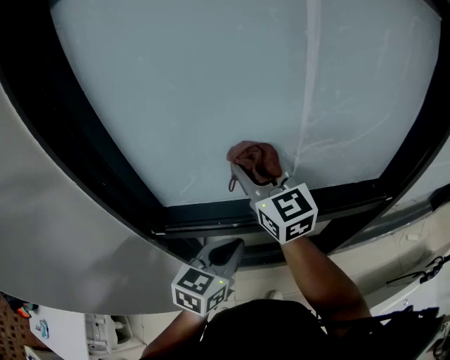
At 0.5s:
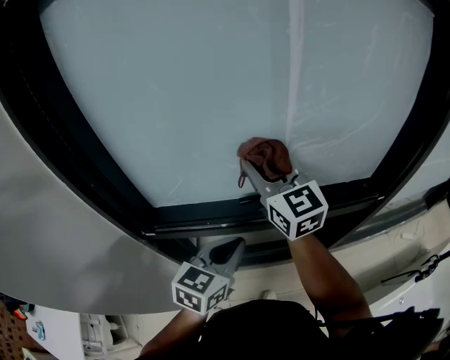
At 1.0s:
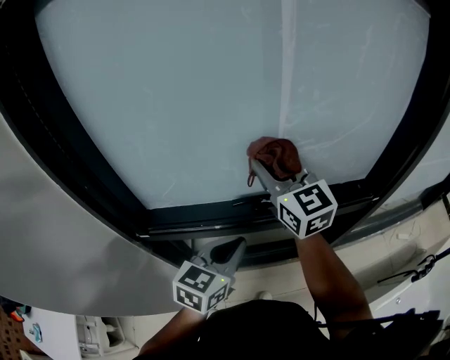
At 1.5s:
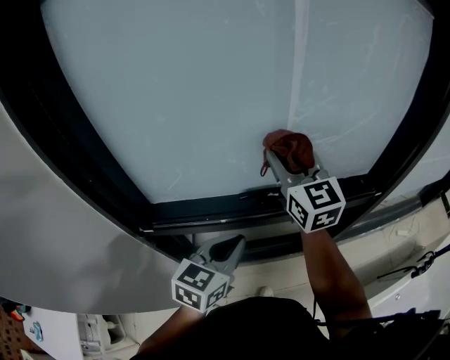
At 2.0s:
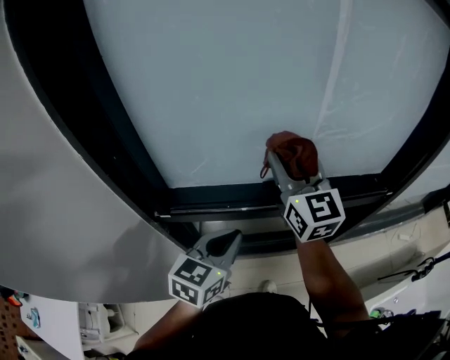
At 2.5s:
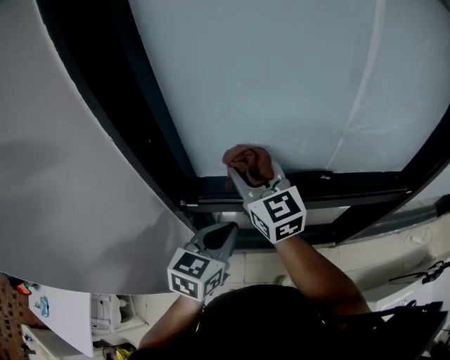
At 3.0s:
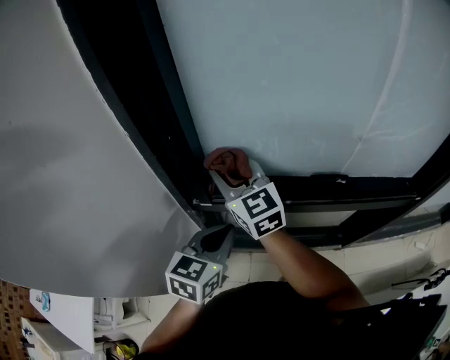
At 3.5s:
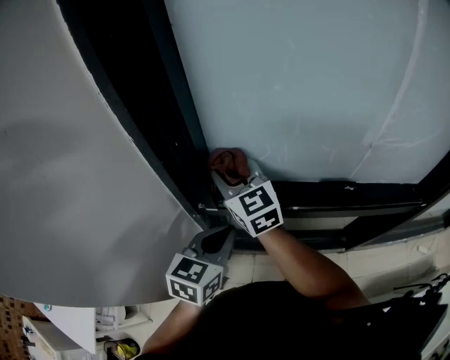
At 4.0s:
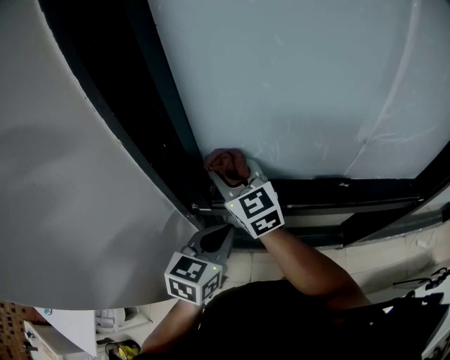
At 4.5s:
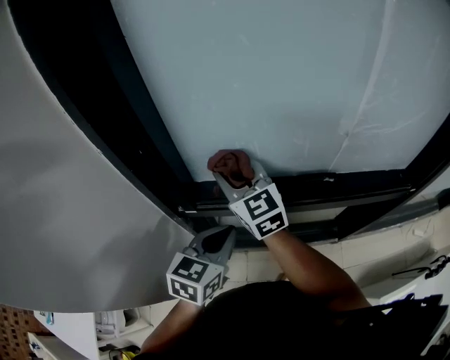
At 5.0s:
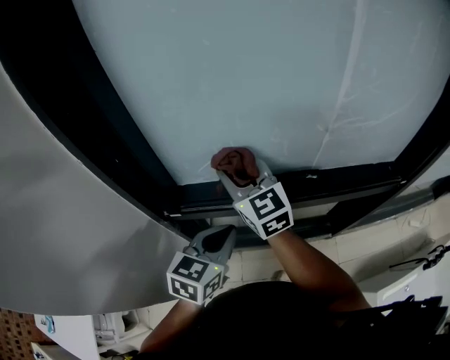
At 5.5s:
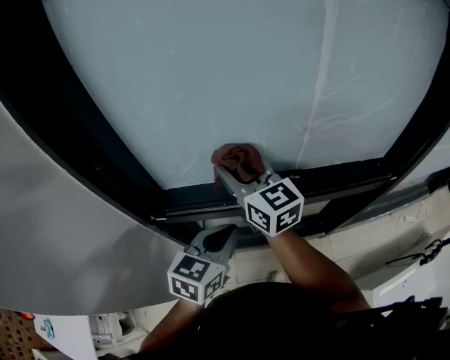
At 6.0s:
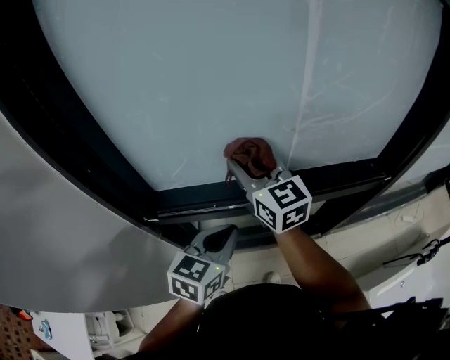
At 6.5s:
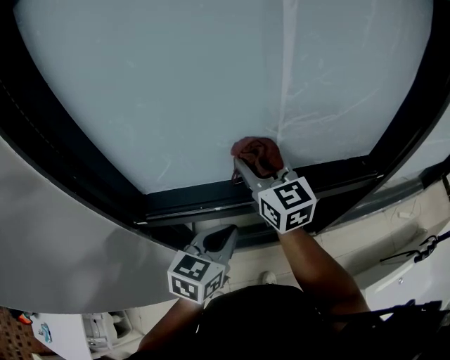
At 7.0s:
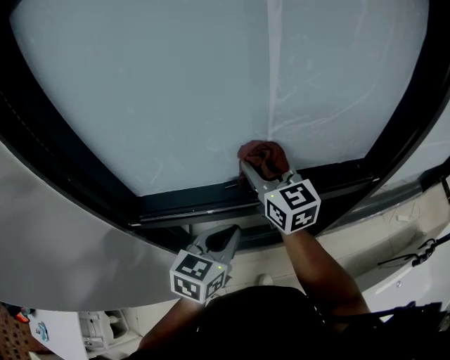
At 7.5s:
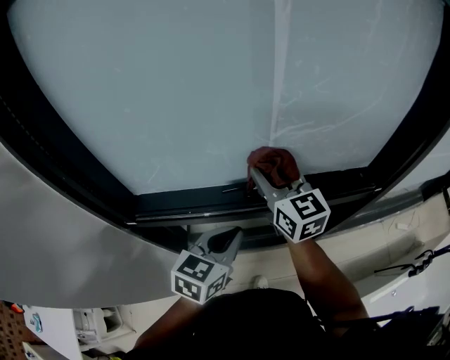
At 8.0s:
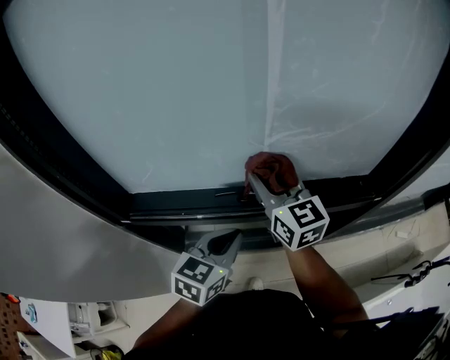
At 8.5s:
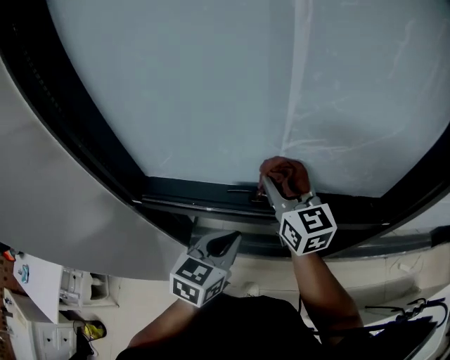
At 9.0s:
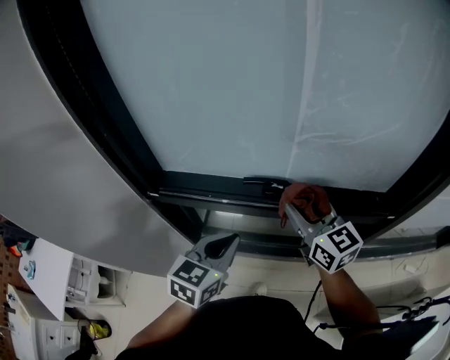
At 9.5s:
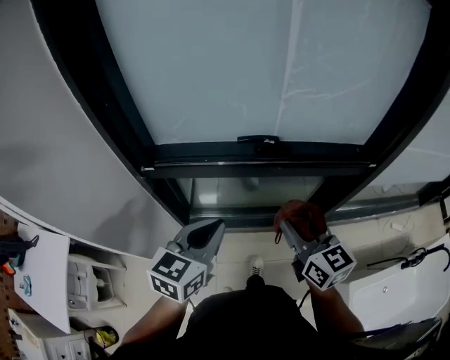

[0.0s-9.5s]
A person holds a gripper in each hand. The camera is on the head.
2.0s to 4.0s: The right gripper is displaced to the left by roughly 25 cm, and changes its angle by some 30 degrees; the left gripper goes roughly 15 cm to the left.
4.0s to 5.5s: Both grippers travel together to the right, about 15 cm.
5.5s to 7.5s: The right gripper moves to the right, some 15 cm. Meanwhile the left gripper travels to the right by approximately 10 cm.
7.5s to 9.5s: The right gripper travels backward by roughly 25 cm, while the left gripper heads backward and to the left, covering approximately 15 cm.

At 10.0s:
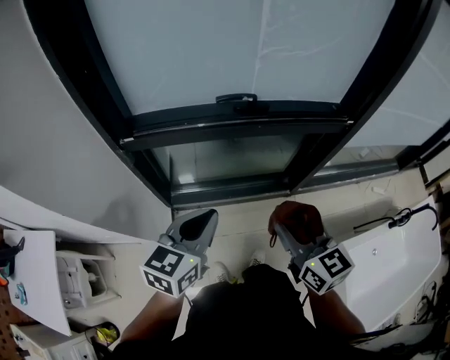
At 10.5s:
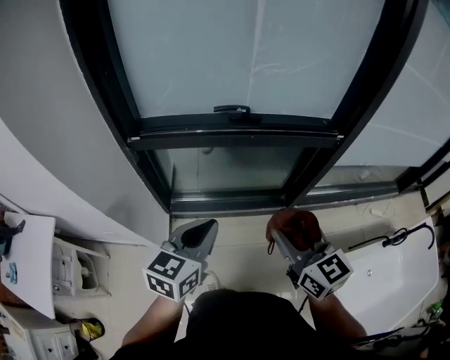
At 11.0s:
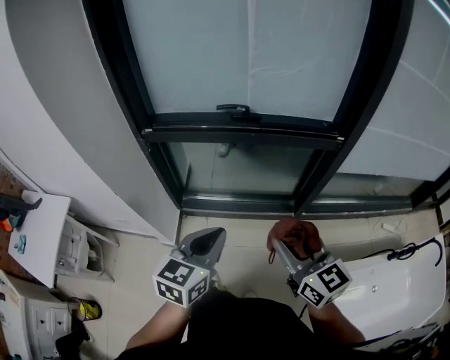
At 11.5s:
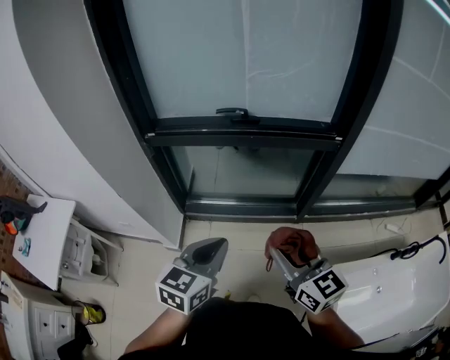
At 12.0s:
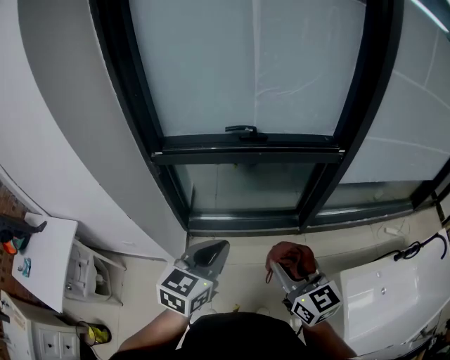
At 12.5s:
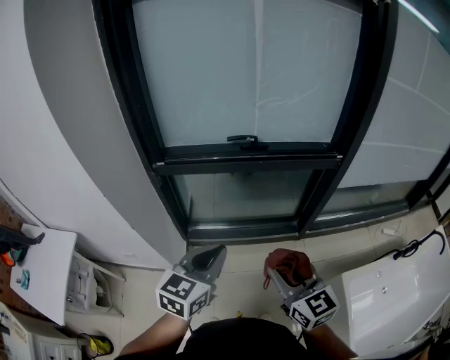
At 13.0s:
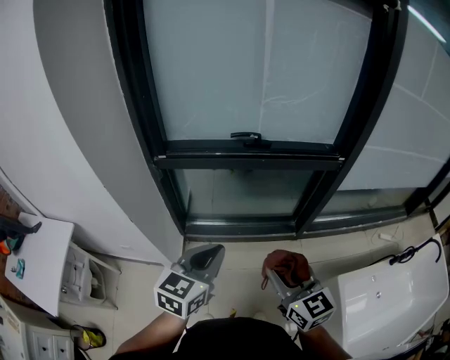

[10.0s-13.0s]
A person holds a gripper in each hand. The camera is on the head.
10.0s to 11.5s: Both grippers travel together backward and to the right, some 20 cm.
11.5s to 13.0s: The grippers both shift to the left by roughly 10 cm.

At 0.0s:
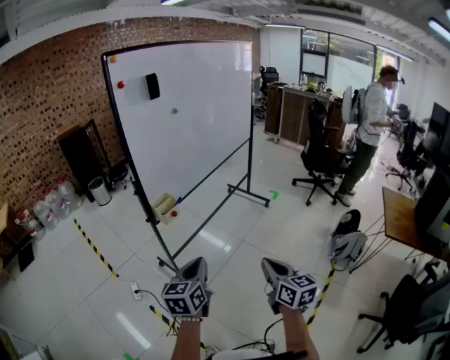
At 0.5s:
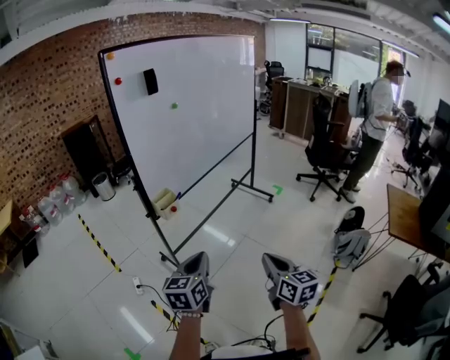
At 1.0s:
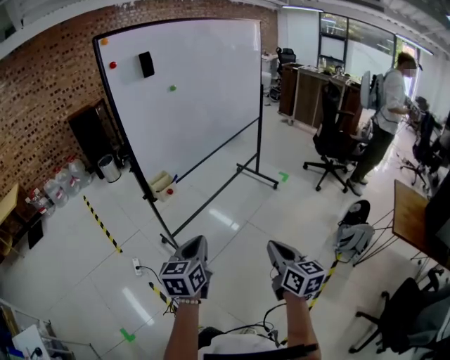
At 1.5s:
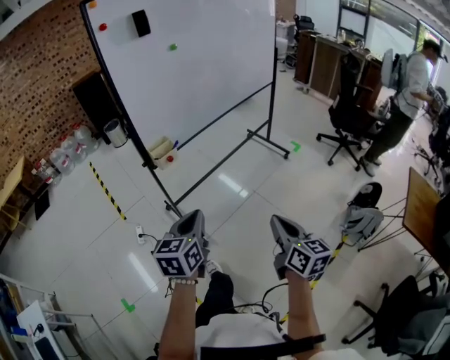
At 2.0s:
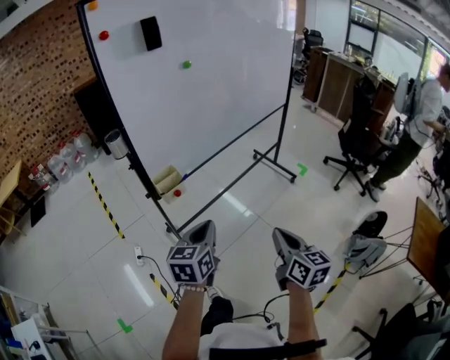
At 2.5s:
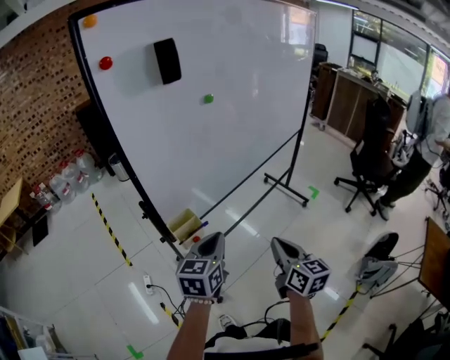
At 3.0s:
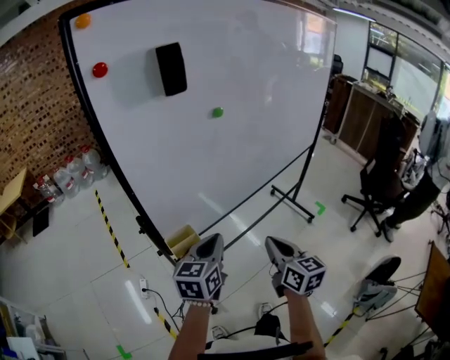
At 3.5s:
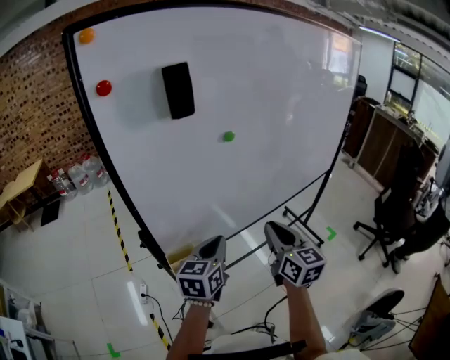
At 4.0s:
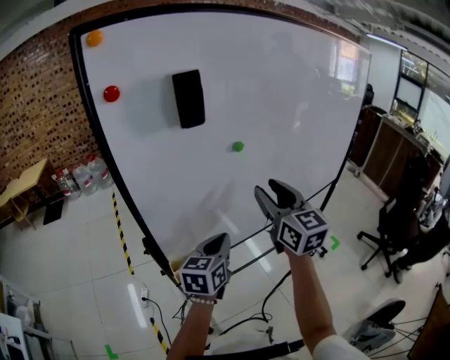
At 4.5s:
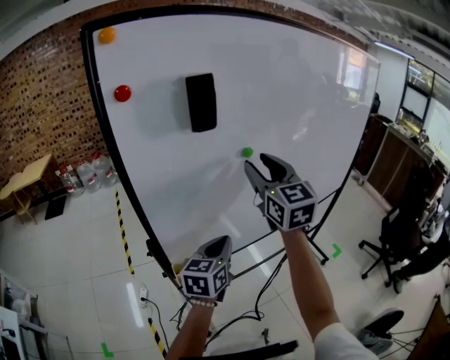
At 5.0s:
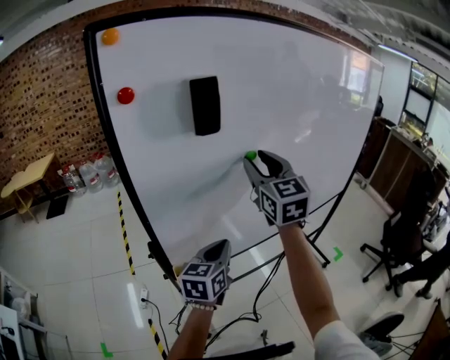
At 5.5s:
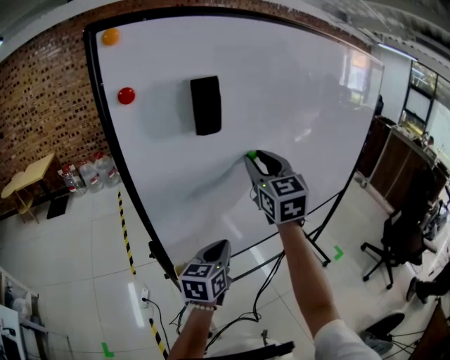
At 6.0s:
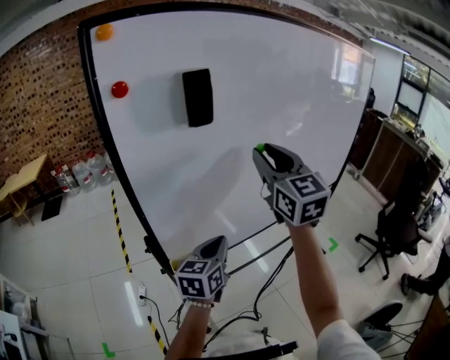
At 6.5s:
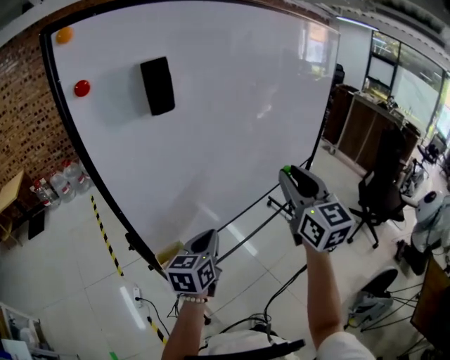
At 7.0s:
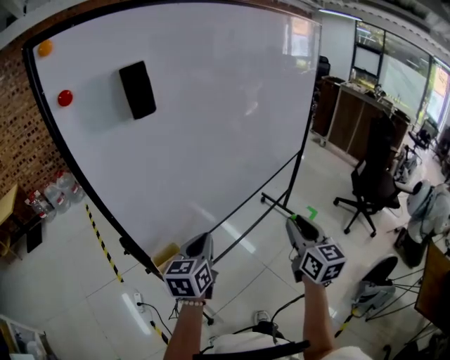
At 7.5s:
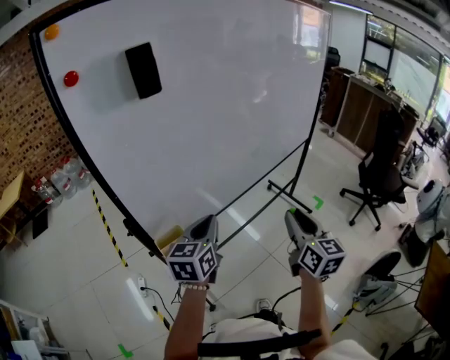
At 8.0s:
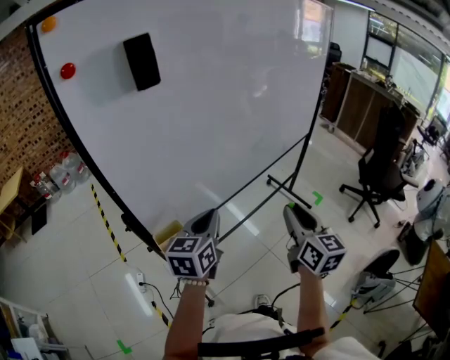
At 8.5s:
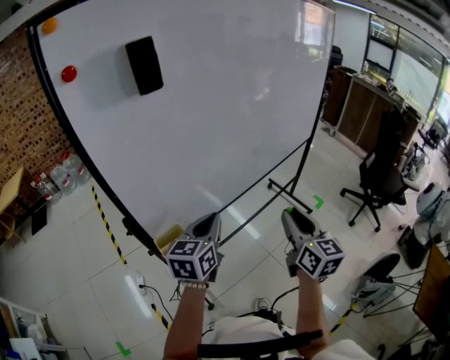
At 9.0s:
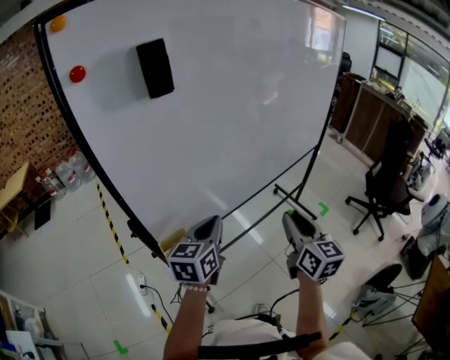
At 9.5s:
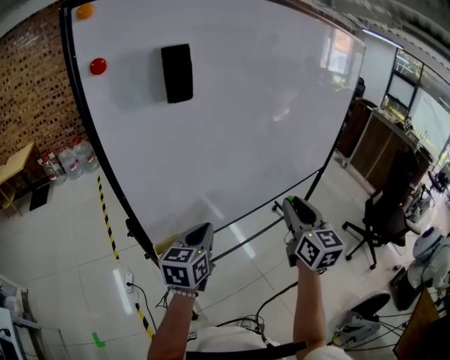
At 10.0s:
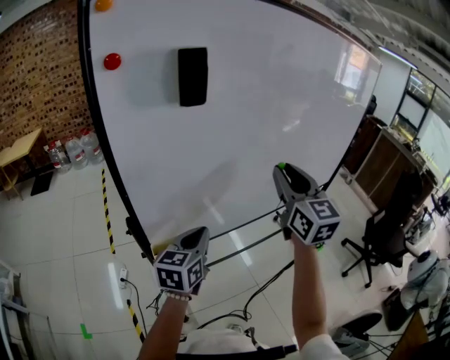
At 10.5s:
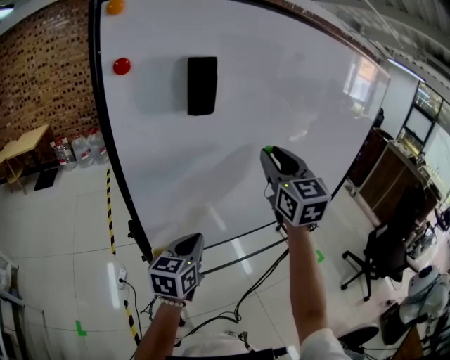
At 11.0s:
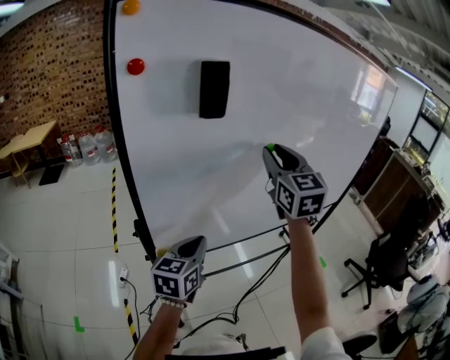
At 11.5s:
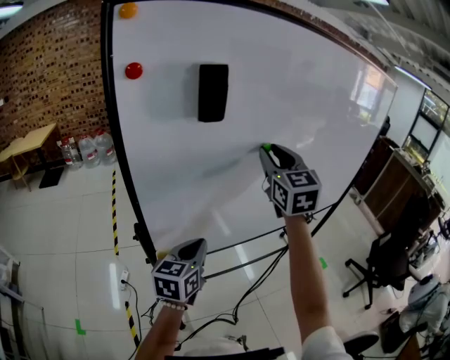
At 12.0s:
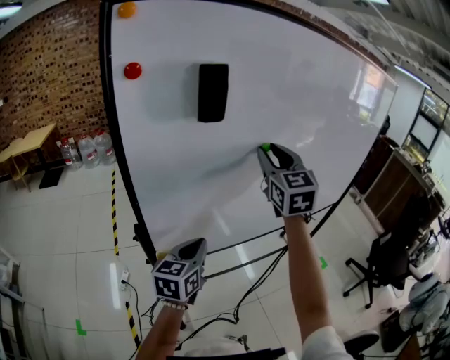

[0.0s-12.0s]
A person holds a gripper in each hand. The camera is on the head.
0.0s to 2.0s: Both grippers move forward, some 20 cm.
2.0s to 4.0s: The right gripper moves forward and upward, about 50 cm, turns by approximately 30 degrees, and opens its fingers. Meanwhile the left gripper is displaced forward by roughly 35 cm.
4.0s to 6.0s: The right gripper goes about 10 cm upward, and closes its fingers.
6.0s to 8.0s: The left gripper travels to the right by roughly 5 cm, while the right gripper is displaced downward, to the right and backward by roughly 35 cm, and changes its angle by approximately 30 degrees.
8.0s to 10.0s: The right gripper shifts about 25 cm upward, forward and to the left, and turns by roughly 30 degrees, while the left gripper changes place by about 5 cm.
10.0s to 12.0s: The right gripper shifts some 10 cm forward and to the left.

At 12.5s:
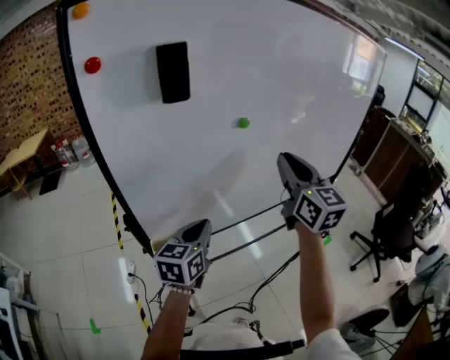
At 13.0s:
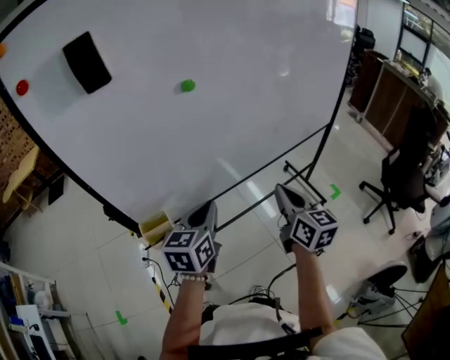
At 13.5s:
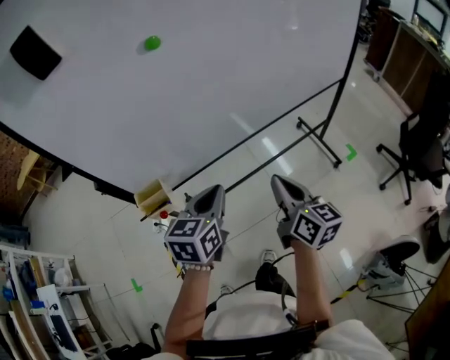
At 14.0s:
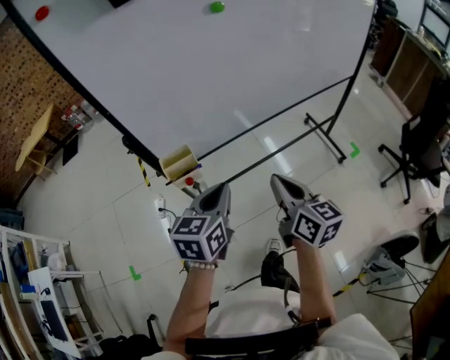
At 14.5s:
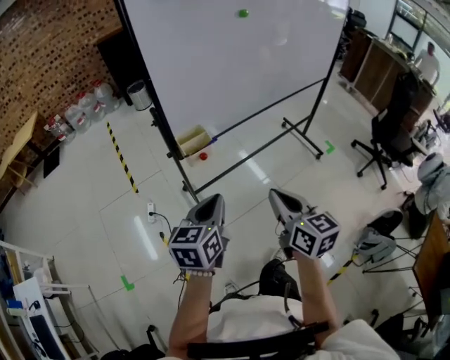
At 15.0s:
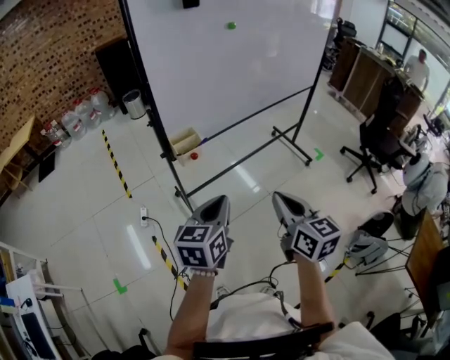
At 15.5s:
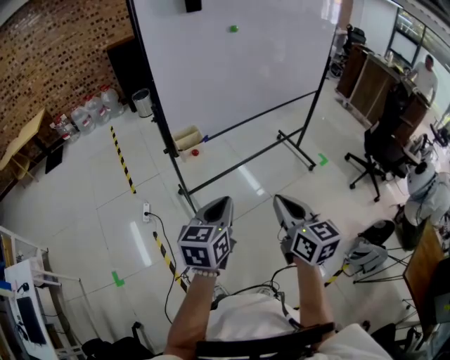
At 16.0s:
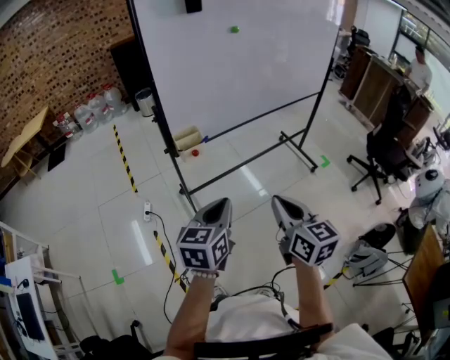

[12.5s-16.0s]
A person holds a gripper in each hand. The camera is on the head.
12.5s to 14.5s: The right gripper is displaced backward and downward by about 50 cm, and turns by roughly 30 degrees. The left gripper is displaced backward by roughly 30 cm.
14.5s to 16.0s: The grippers both shift backward and to the right by approximately 10 cm.
